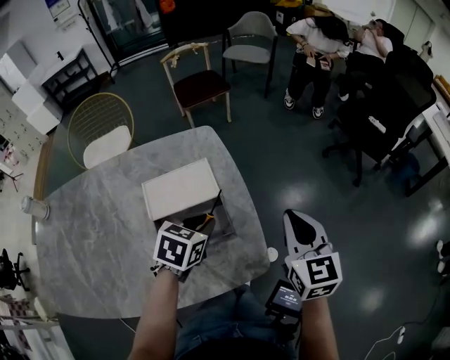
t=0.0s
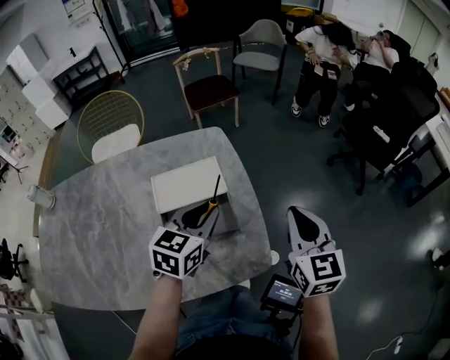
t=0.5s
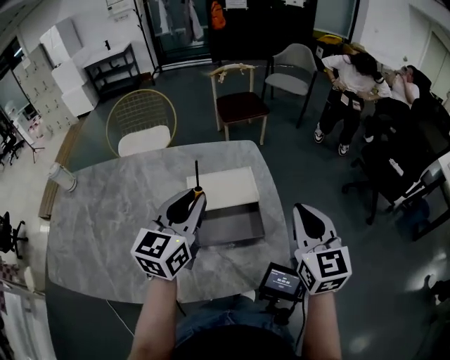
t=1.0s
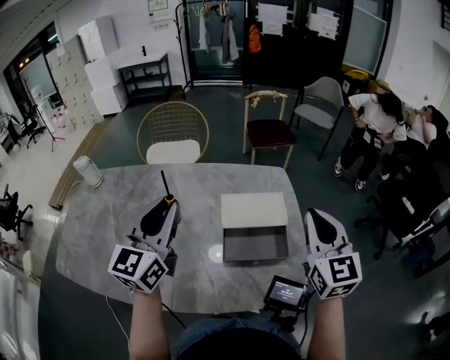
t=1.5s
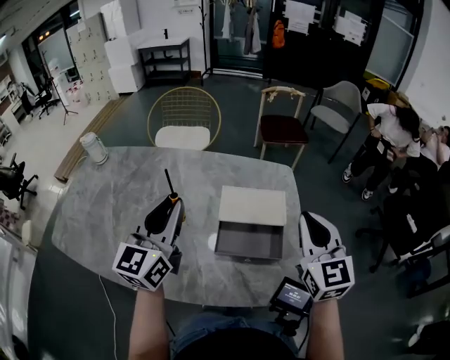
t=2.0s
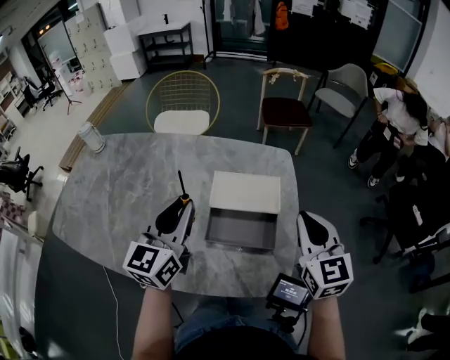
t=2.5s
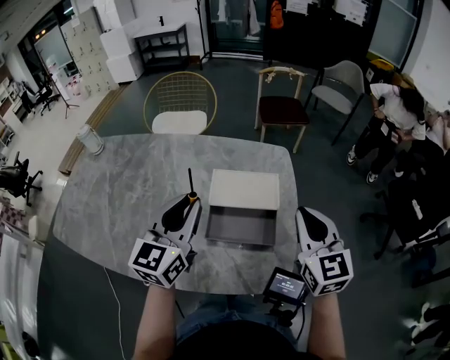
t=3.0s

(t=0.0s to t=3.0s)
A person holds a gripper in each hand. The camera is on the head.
t=0.0s - t=1.5s: The right gripper moves approximately 20 cm, and rotates about 20 degrees, while the left gripper shifts by approximately 35 cm, and angles its fingers upward, by approximately 50 degrees.
t=1.5s - t=3.0s: The left gripper shifts about 10 cm to the right and downward, while the right gripper moves downward, about 5 cm.

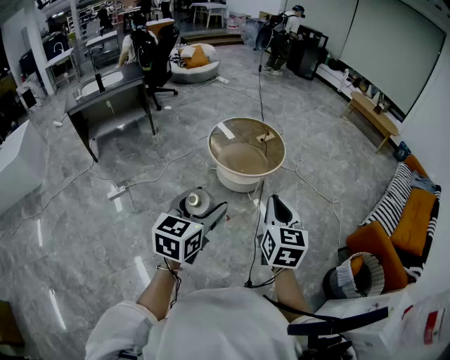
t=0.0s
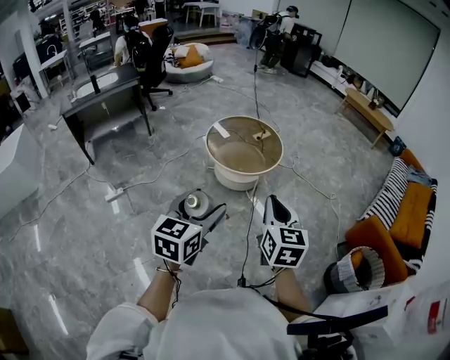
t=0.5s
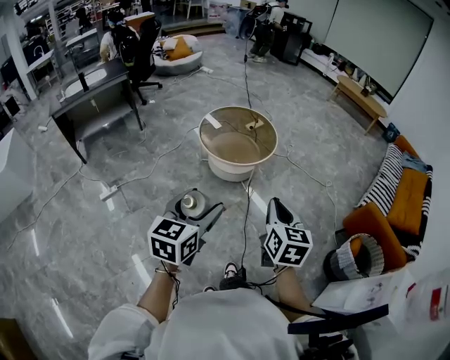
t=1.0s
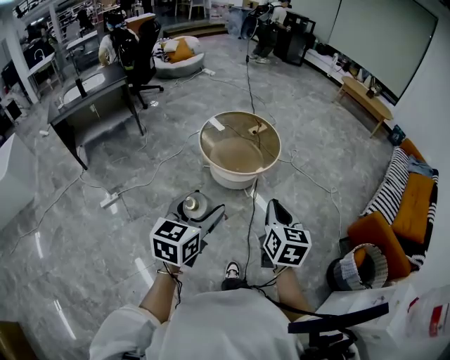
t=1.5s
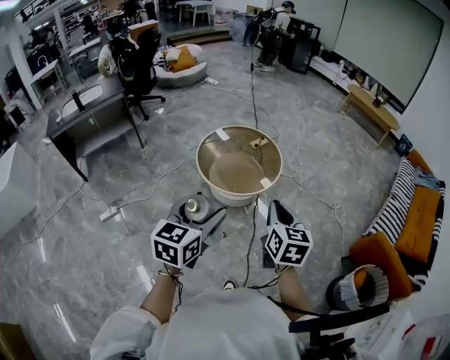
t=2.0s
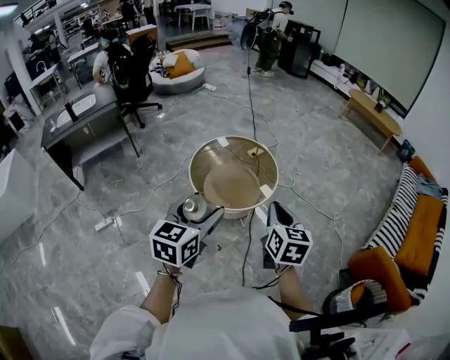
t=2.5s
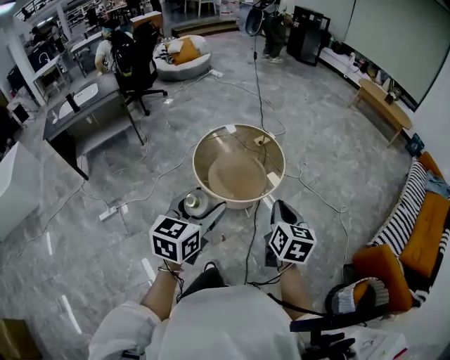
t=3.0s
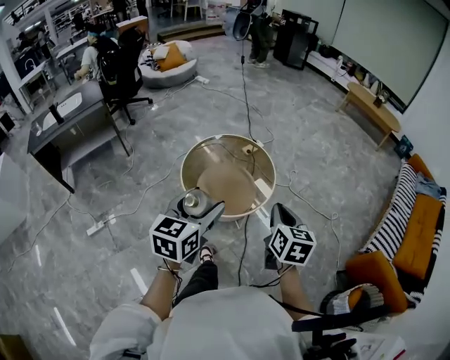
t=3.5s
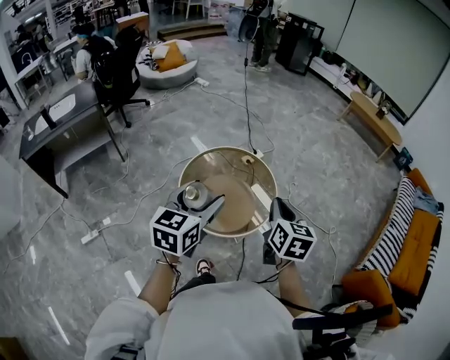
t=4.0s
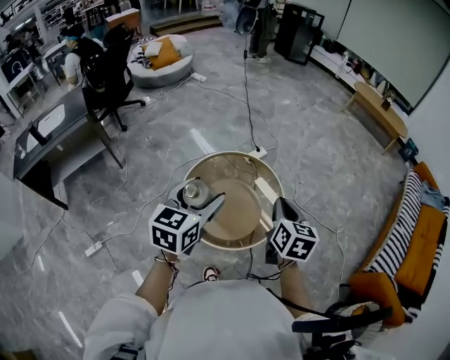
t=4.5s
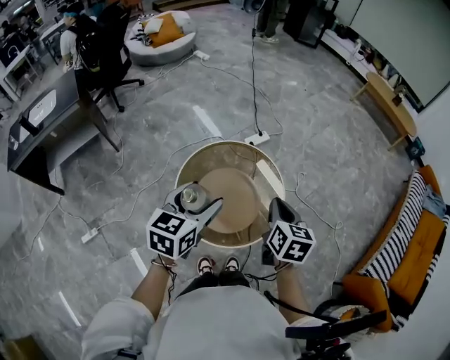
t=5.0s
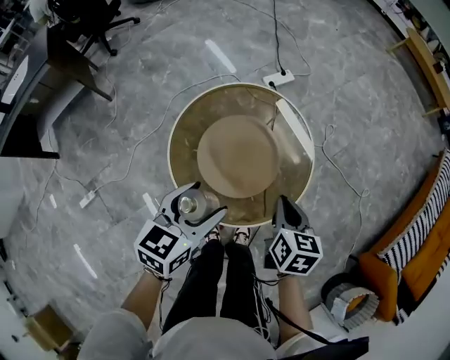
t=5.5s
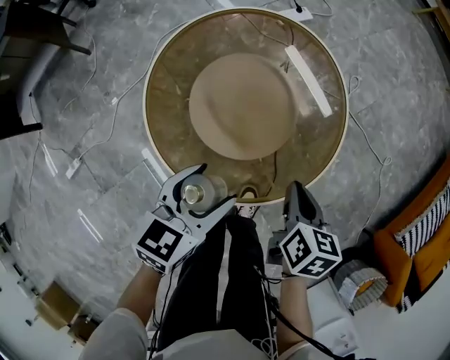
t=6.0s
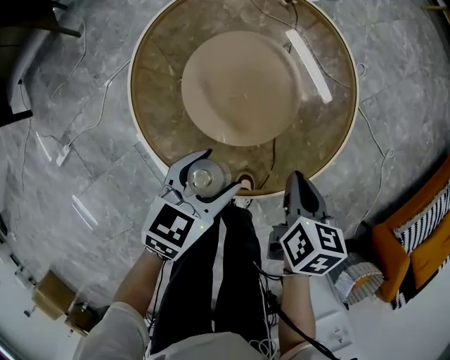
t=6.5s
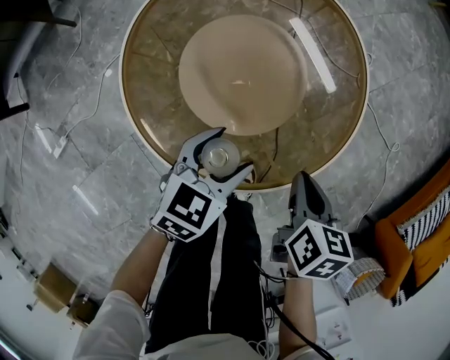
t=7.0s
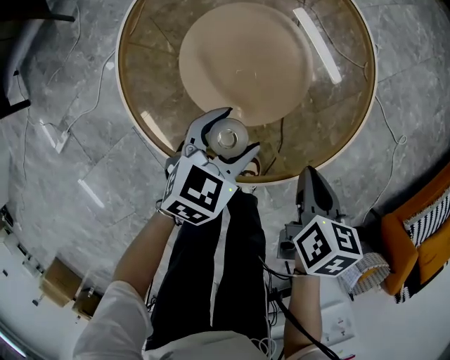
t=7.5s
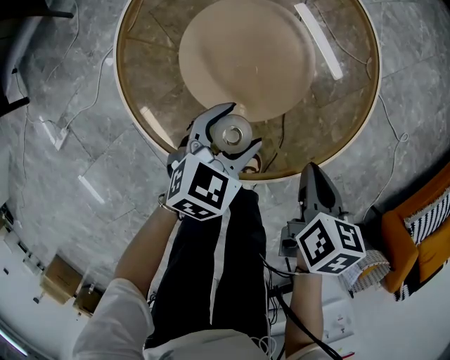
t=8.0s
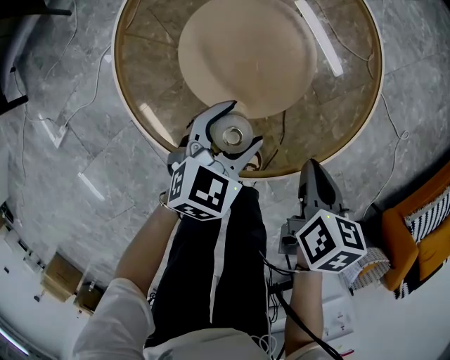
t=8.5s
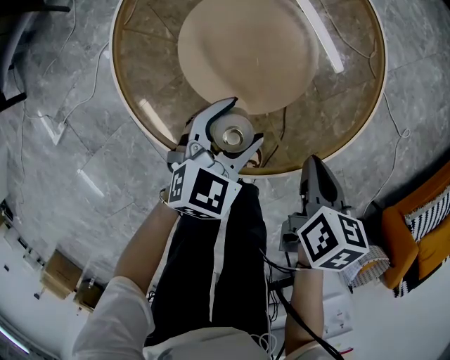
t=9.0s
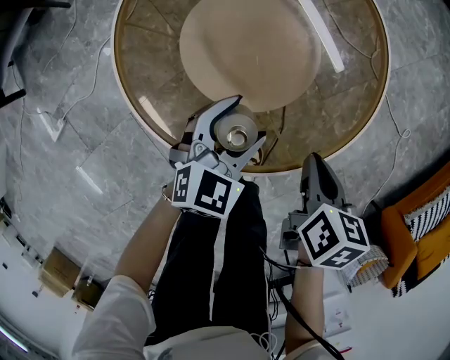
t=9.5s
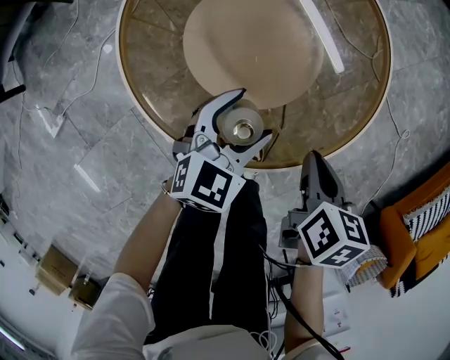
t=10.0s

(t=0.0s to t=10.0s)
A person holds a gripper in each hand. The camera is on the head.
t=0.0s - t=2.0s: The two grippers go roughly 20 cm forward.
t=2.0s - t=4.0s: Both grippers travel together forward, some 30 cm.
t=4.0s - t=6.0s: Both grippers move downward, roughly 40 cm. The right gripper changes its angle by roughly 30 degrees. Meanwhile the left gripper swivels roughly 30 degrees.
t=6.0s - t=8.0s: The right gripper moves downward, roughly 5 cm. Meanwhile the left gripper goes about 15 cm downward.
t=8.0s - t=10.0s: The grippers stay close to where they were, moving slightly.

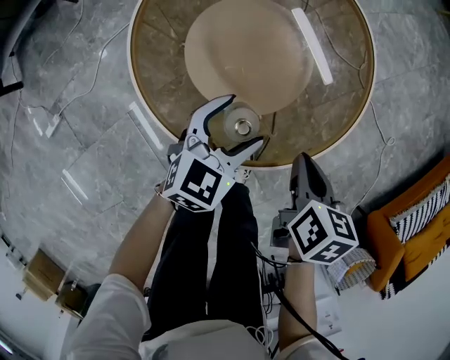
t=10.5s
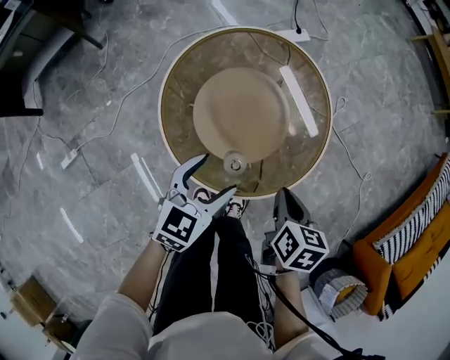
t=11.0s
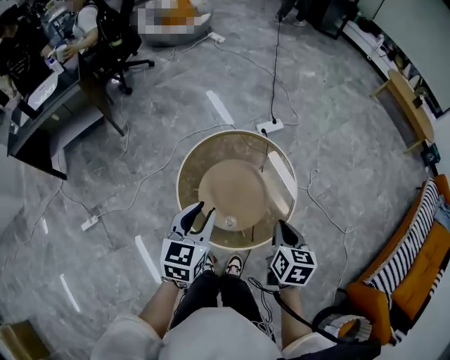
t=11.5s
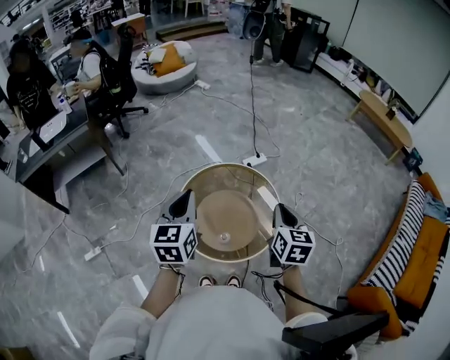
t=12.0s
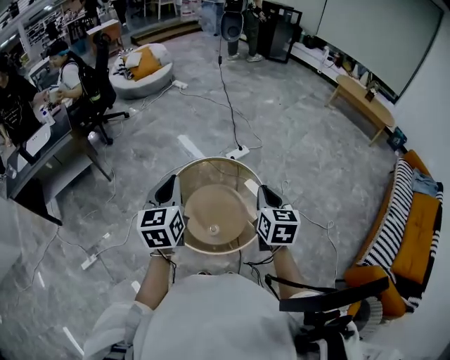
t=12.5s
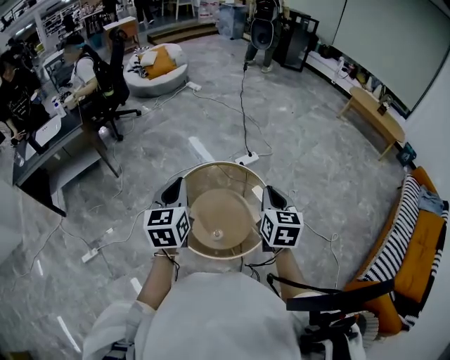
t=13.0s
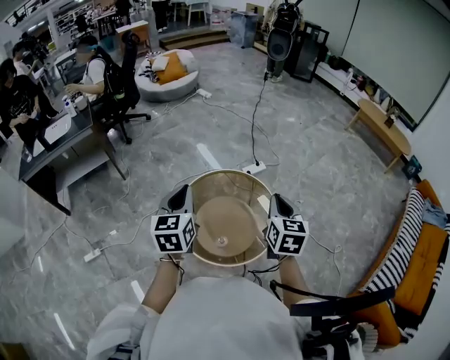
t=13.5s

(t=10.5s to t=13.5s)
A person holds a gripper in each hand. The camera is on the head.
t=10.5s - t=12.0s: The grippers both shift upward by some 50 cm. The left gripper turns by roughly 40 degrees, and closes its fingers, while the right gripper points its fingers some 30 degrees further upward.
t=12.0s - t=13.5s: There are only small adjustments of the grippers.

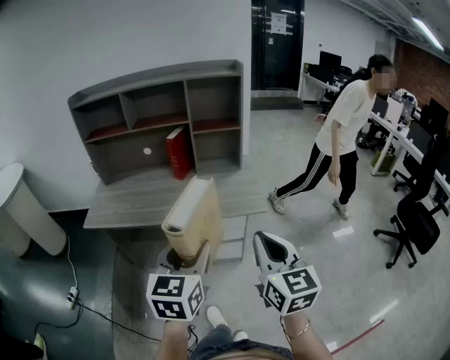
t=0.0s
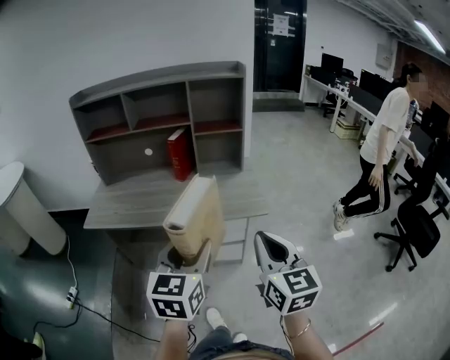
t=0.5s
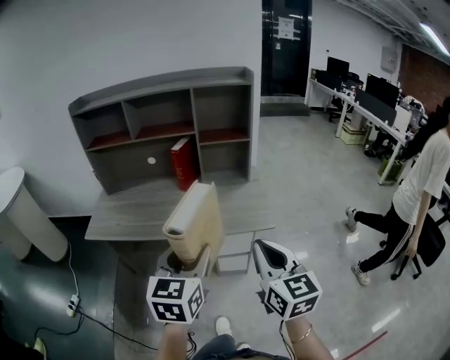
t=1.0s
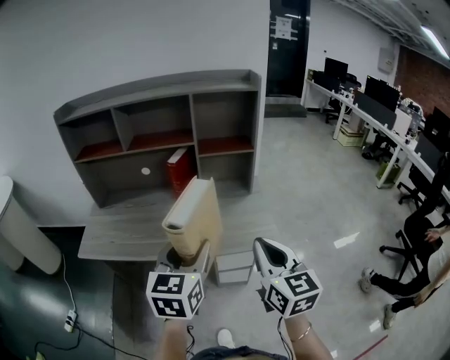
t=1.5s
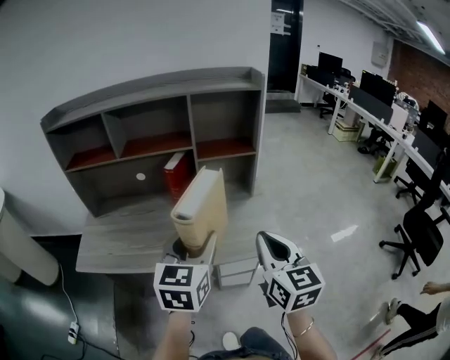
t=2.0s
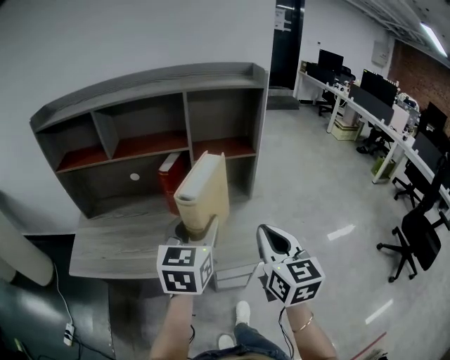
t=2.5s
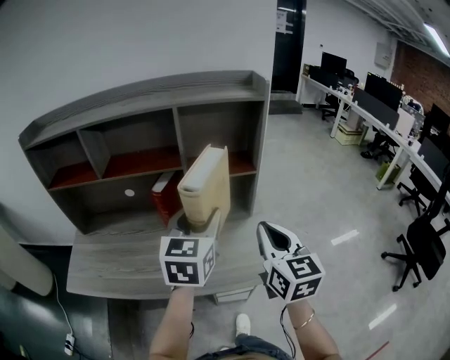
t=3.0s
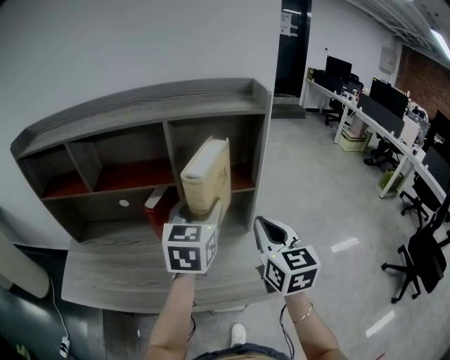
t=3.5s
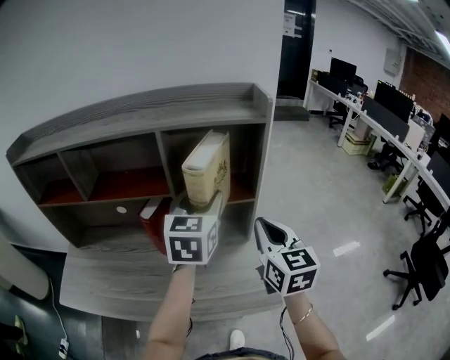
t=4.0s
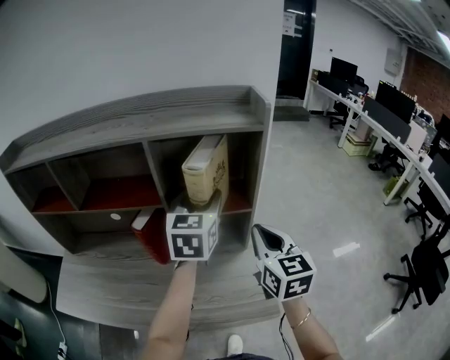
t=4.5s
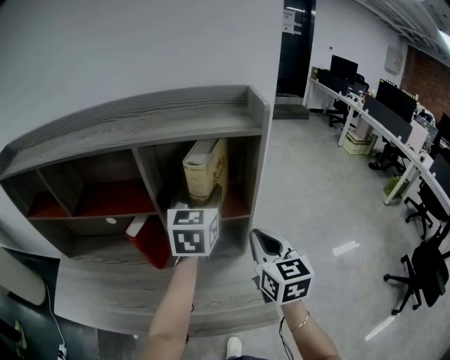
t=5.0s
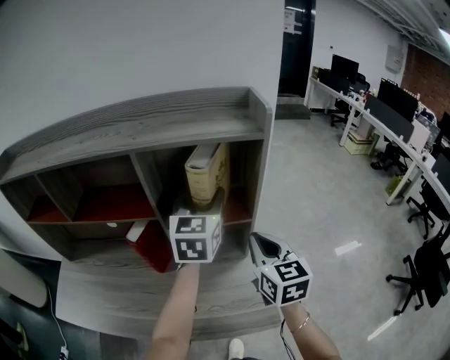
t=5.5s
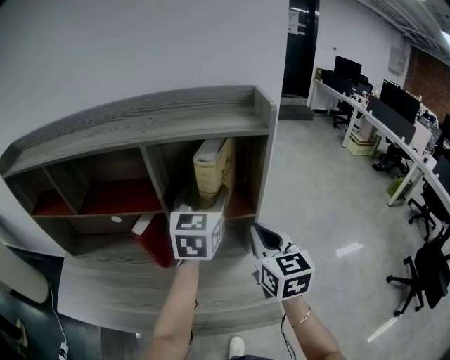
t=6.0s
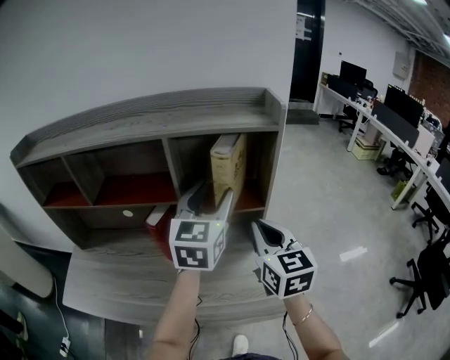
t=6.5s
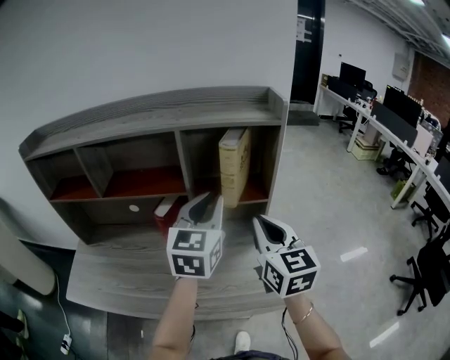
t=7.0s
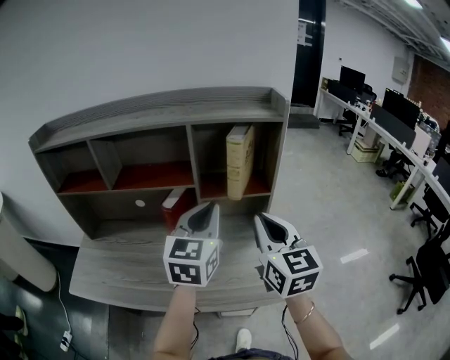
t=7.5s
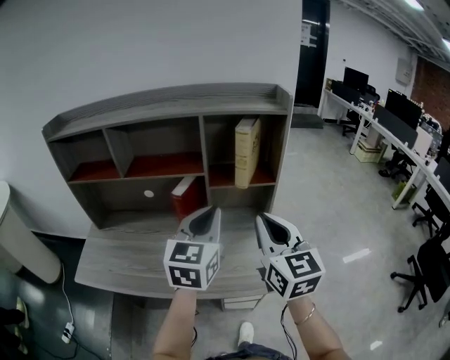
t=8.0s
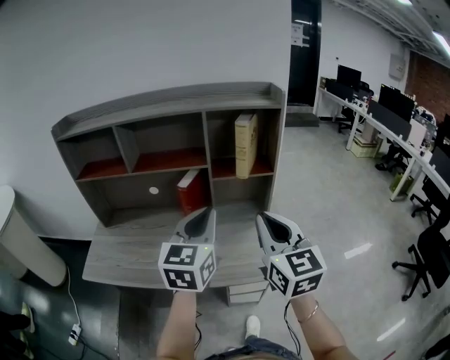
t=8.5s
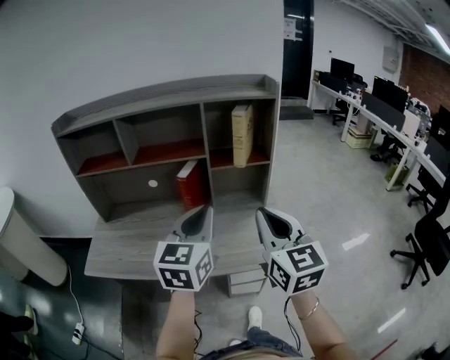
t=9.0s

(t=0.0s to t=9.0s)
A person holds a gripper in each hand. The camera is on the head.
t=0.0s - t=2.0s: Both grippers travel together forward, roughly 25 cm.
t=2.0s - t=4.5s: Both grippers move forward, about 35 cm.
t=4.5s - t=7.0s: The left gripper moves backward, approximately 10 cm, and closes. Meanwhile the right gripper is displaced to the left by about 5 cm.
t=7.0s - t=9.0s: The grippers both shift backward by about 20 cm.

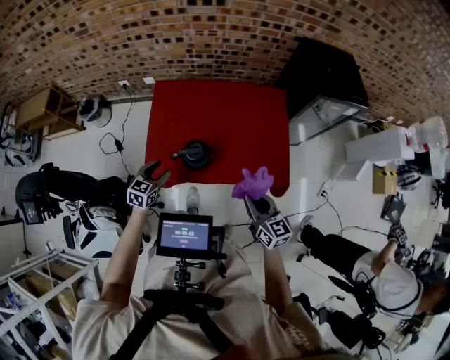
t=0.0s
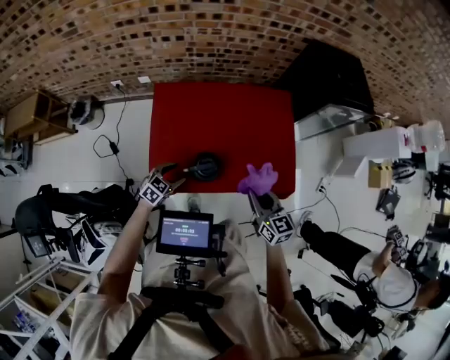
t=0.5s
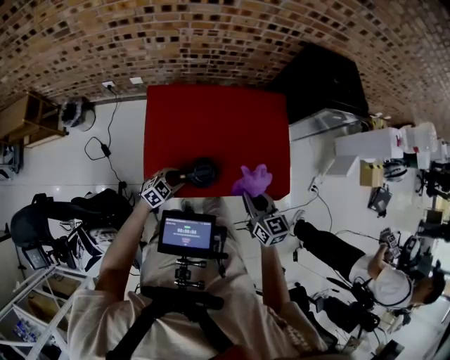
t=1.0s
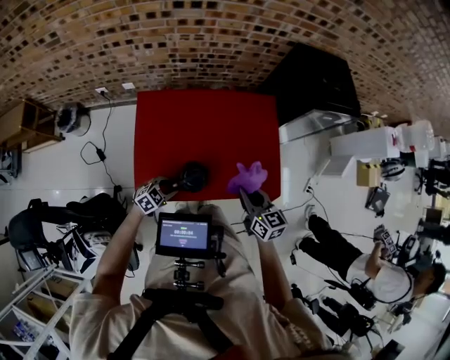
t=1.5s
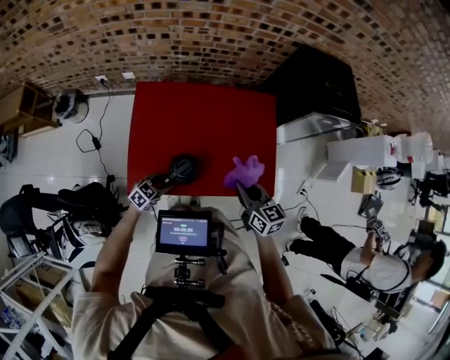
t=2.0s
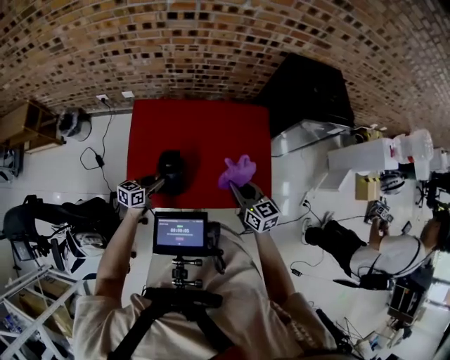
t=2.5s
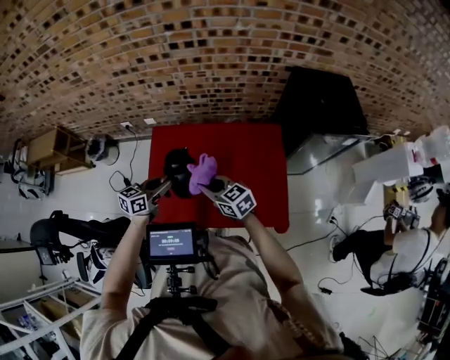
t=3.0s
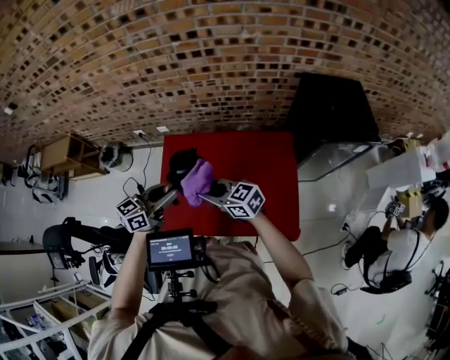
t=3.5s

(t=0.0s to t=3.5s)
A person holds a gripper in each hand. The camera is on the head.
t=0.0s - t=2.0s: The left gripper heads downward, covering about 10 cm, and swivels about 30 degrees; the right gripper is displaced forward by about 15 cm.
t=2.0s - t=3.5s: The right gripper changes place by some 20 cm, and swivels some 40 degrees. Meanwhile the left gripper shifts about 30 cm upward, and turns by some 40 degrees.
